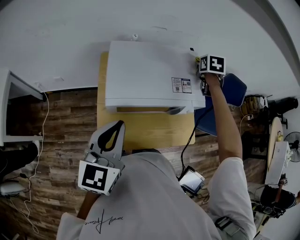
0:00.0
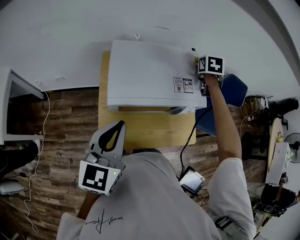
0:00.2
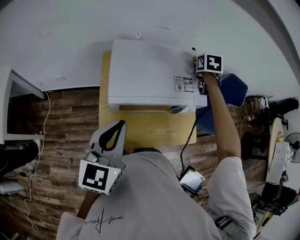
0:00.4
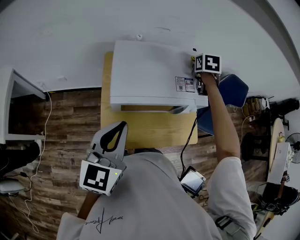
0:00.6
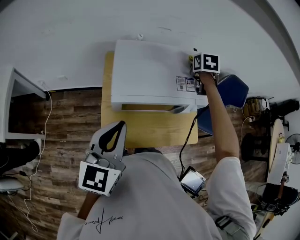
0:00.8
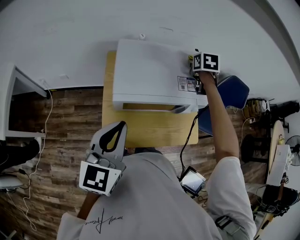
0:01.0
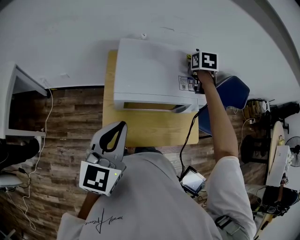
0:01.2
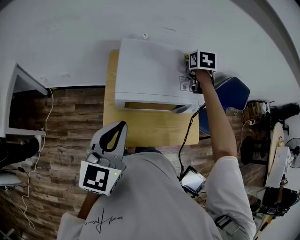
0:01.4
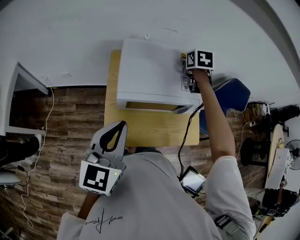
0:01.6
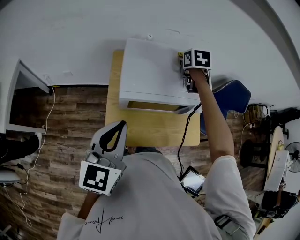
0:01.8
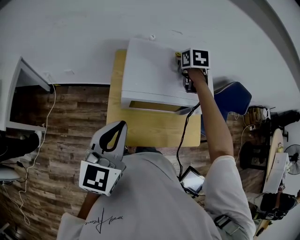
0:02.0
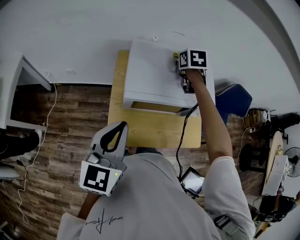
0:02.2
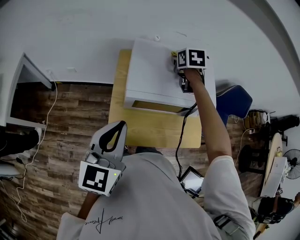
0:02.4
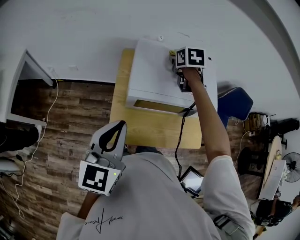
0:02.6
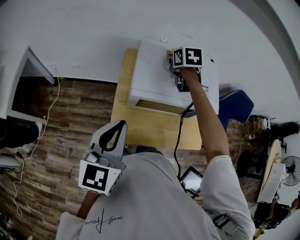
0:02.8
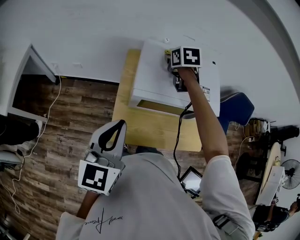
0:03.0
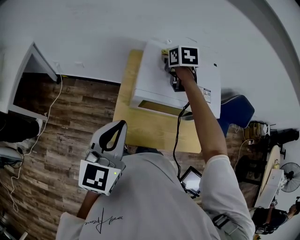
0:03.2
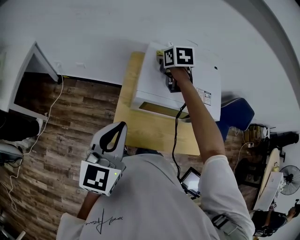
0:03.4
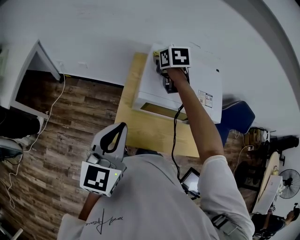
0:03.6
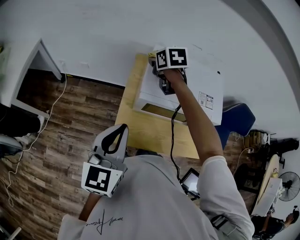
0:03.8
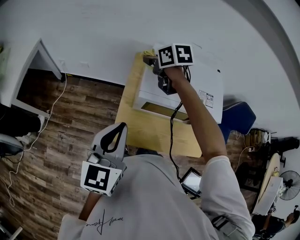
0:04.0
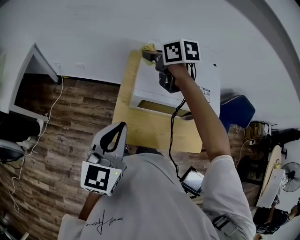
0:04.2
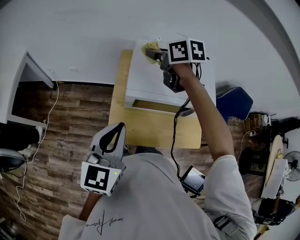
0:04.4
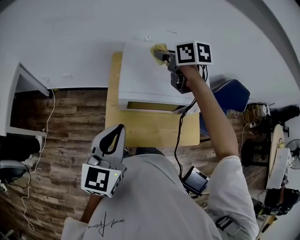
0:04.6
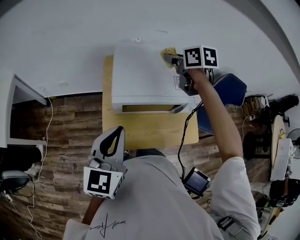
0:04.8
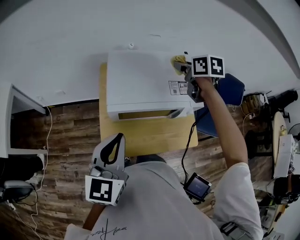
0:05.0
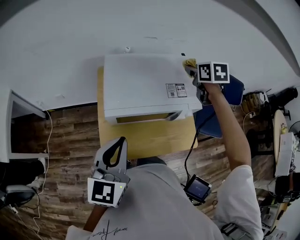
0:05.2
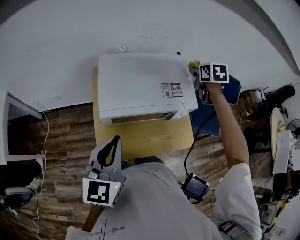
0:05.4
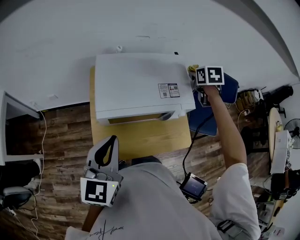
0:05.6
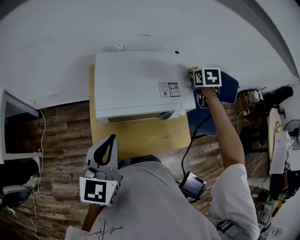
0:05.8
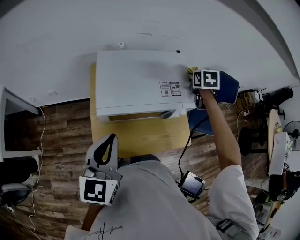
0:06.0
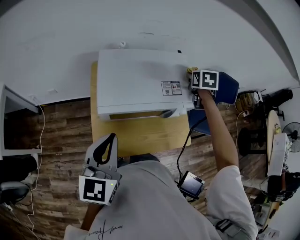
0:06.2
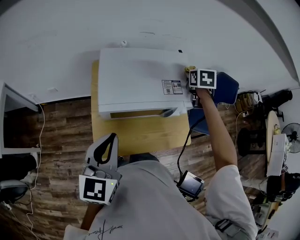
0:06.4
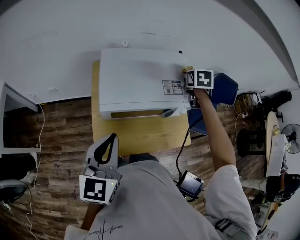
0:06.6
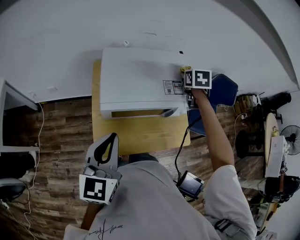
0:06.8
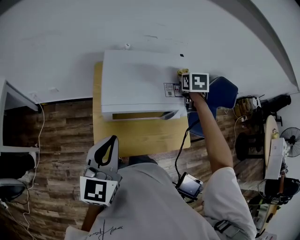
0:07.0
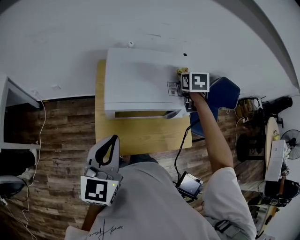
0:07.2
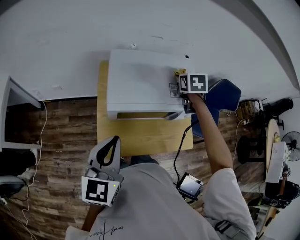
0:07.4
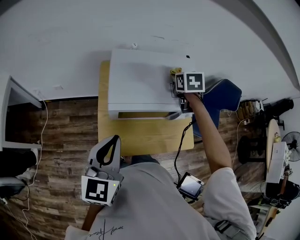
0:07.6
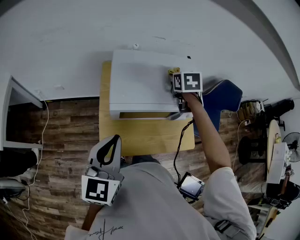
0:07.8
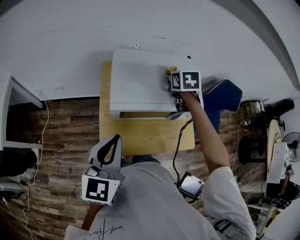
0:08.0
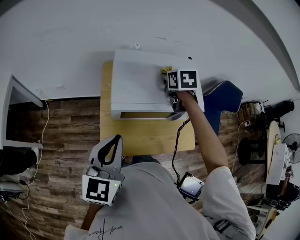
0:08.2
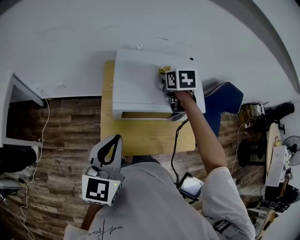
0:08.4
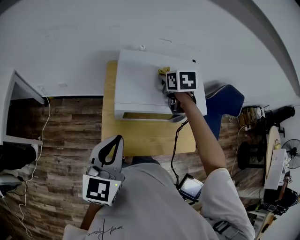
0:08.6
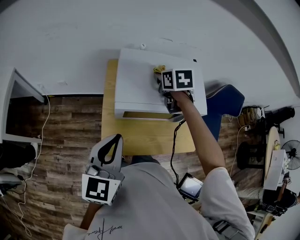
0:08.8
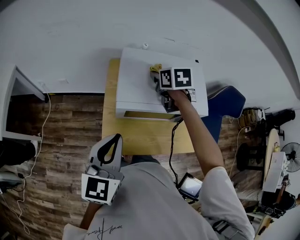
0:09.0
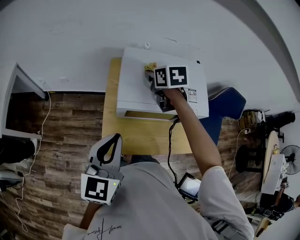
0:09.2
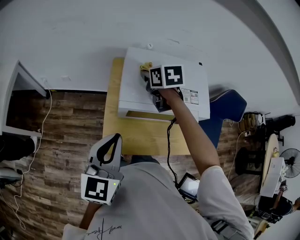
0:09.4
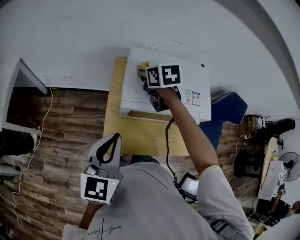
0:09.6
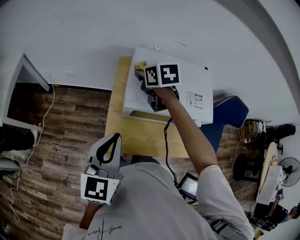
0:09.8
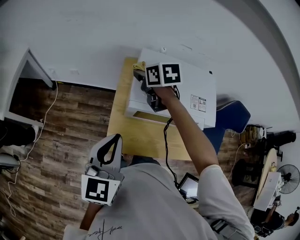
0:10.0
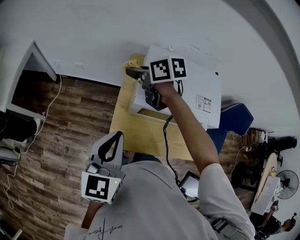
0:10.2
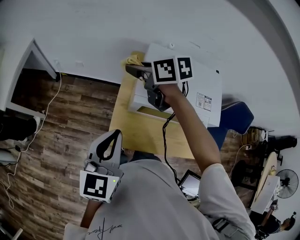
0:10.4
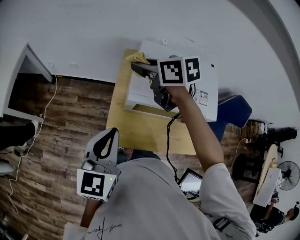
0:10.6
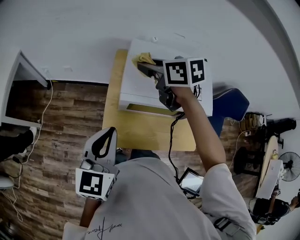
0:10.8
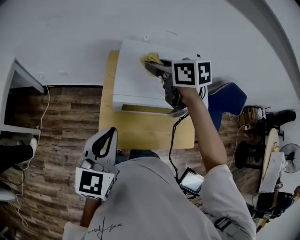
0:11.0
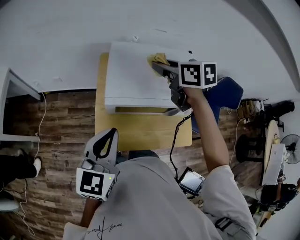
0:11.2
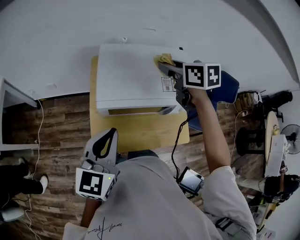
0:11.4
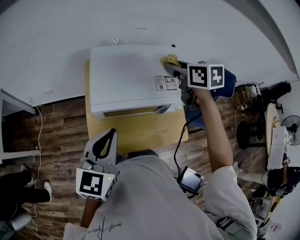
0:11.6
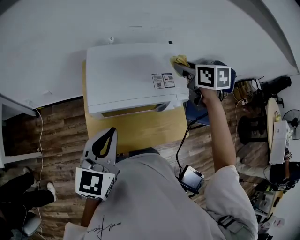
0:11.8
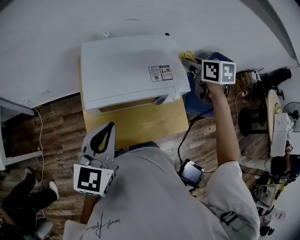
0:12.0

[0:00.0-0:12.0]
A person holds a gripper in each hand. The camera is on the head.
0:00.0 to 0:01.6: The right gripper travels to the left by some 10 cm.
0:01.6 to 0:03.0: The right gripper is displaced to the left by approximately 15 cm; the left gripper shifts by approximately 5 cm.
0:03.0 to 0:04.4: The right gripper heads to the left and upward, covering some 10 cm, and swivels roughly 30 degrees.
0:04.4 to 0:06.0: The right gripper ends up roughly 40 cm from where it was, and turns by roughly 50 degrees. Meanwhile the left gripper changes place by roughly 10 cm.
0:06.0 to 0:07.6: The right gripper goes approximately 15 cm to the left.
0:07.6 to 0:09.0: The right gripper heads to the left, covering roughly 15 cm.
0:09.0 to 0:10.4: The right gripper shifts by roughly 20 cm, and swivels about 40 degrees.
0:10.4 to 0:12.0: The left gripper changes place by roughly 15 cm, and turns by approximately 20 degrees; the right gripper changes place by about 50 cm, and changes its angle by roughly 50 degrees.

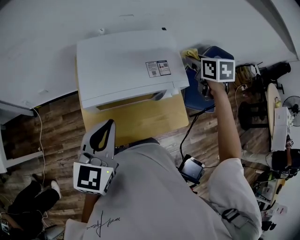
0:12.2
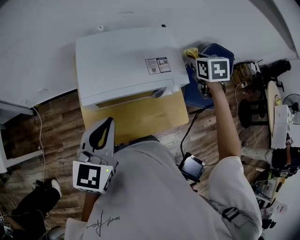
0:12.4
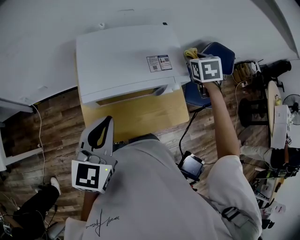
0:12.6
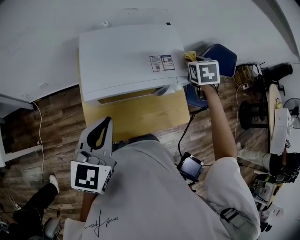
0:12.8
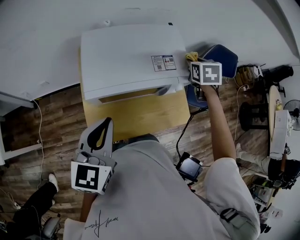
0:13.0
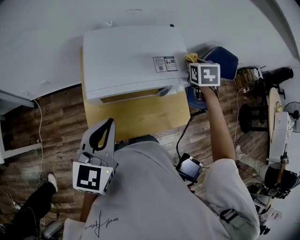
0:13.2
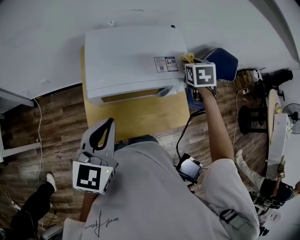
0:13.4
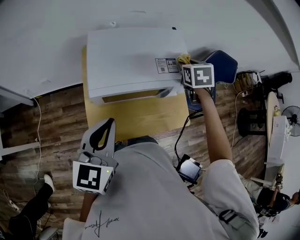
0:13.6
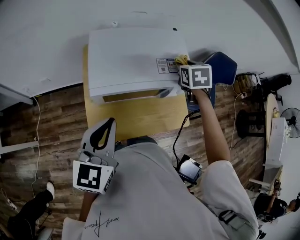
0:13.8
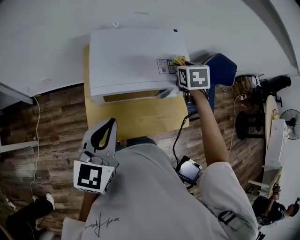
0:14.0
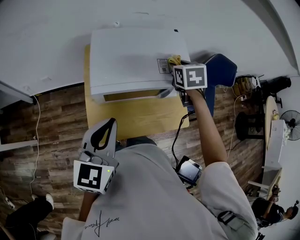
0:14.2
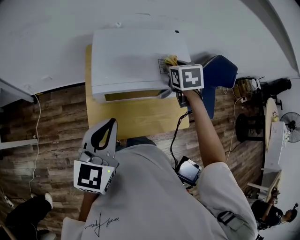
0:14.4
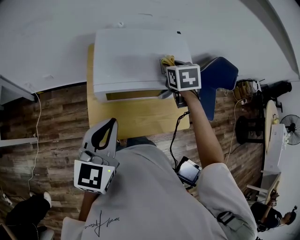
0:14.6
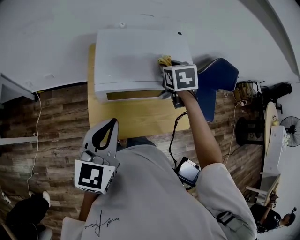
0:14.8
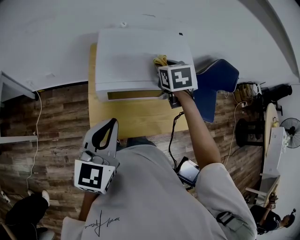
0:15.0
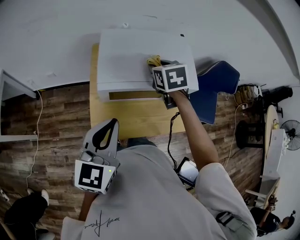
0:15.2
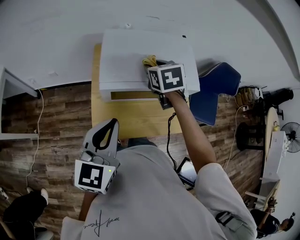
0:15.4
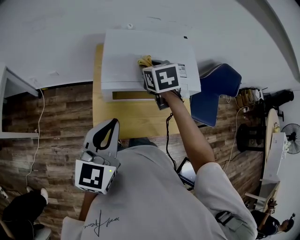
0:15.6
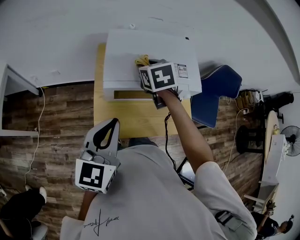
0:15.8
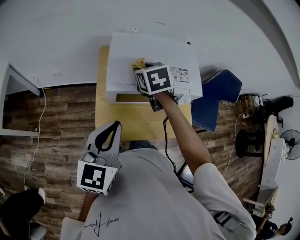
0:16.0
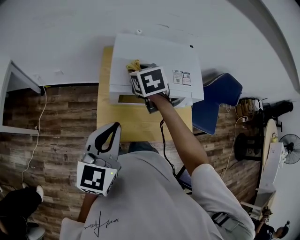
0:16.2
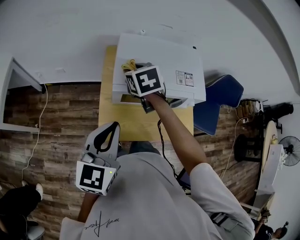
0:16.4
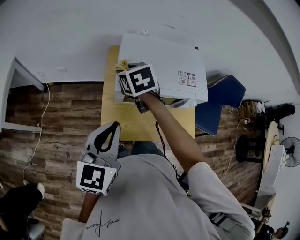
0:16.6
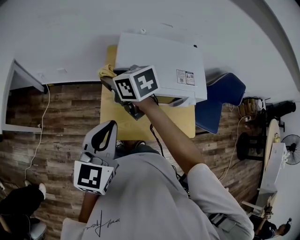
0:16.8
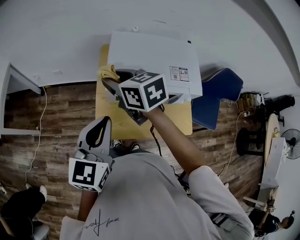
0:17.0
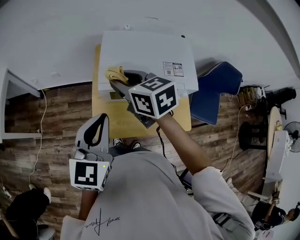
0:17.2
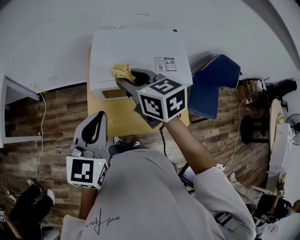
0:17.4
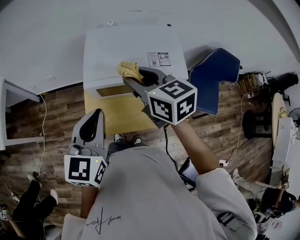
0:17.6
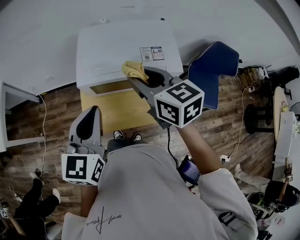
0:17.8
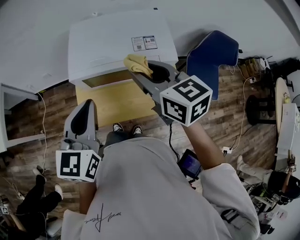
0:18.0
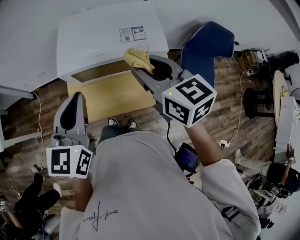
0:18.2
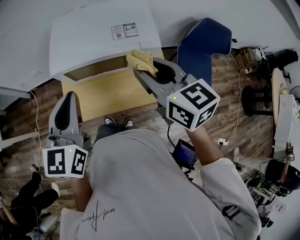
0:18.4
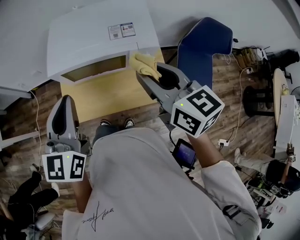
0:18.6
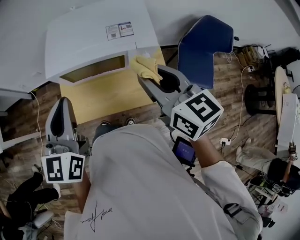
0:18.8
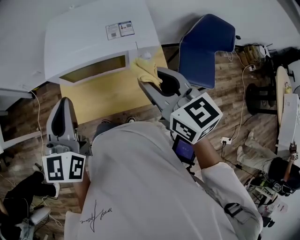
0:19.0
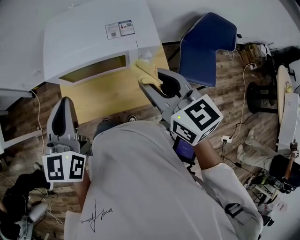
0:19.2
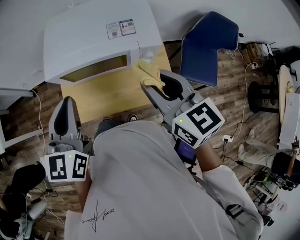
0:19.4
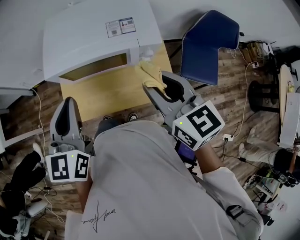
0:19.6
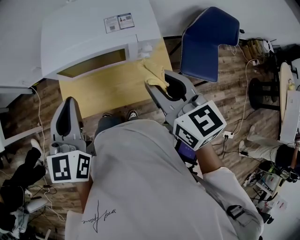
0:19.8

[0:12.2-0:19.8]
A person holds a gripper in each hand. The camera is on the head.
0:12.2 to 0:13.8: The right gripper heads to the left, covering approximately 5 cm.
0:13.8 to 0:15.2: The right gripper travels to the left by about 15 cm.
0:15.2 to 0:16.8: The left gripper ends up some 5 cm from where it was; the right gripper ends up about 25 cm from where it was, and swivels roughly 40 degrees.
0:16.8 to 0:18.2: The right gripper travels to the right and backward by roughly 35 cm, and turns by about 30 degrees. Meanwhile the left gripper is displaced to the right by approximately 10 cm.
0:18.2 to 0:19.8: The left gripper shifts by approximately 5 cm, while the right gripper heads to the right and backward, covering some 10 cm.

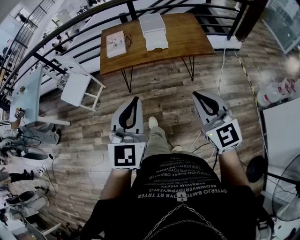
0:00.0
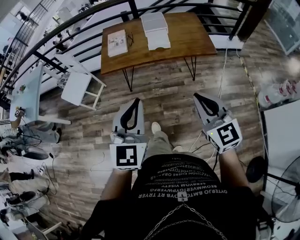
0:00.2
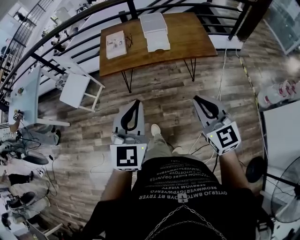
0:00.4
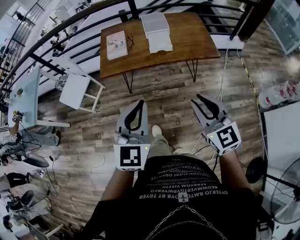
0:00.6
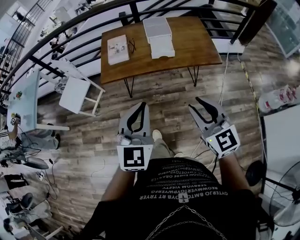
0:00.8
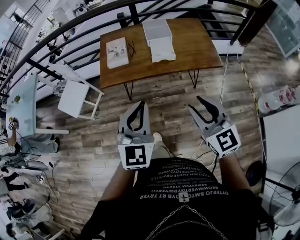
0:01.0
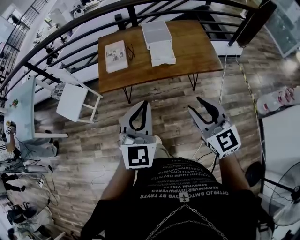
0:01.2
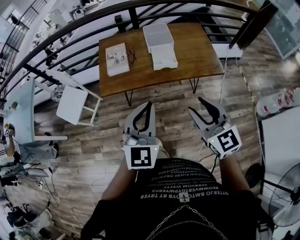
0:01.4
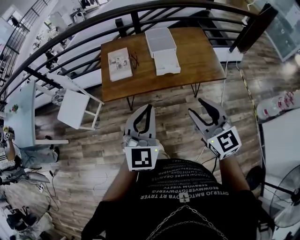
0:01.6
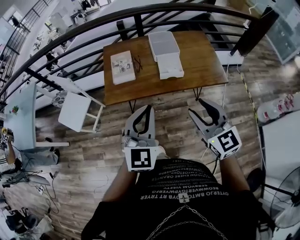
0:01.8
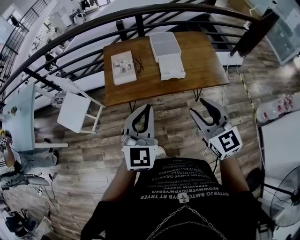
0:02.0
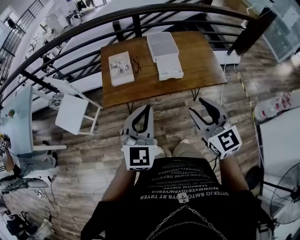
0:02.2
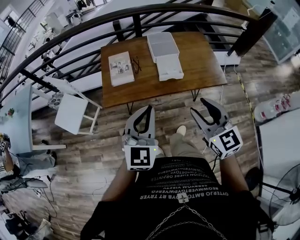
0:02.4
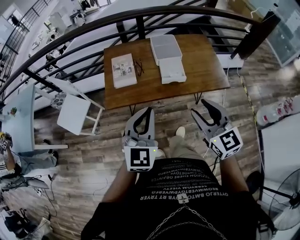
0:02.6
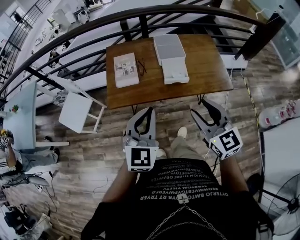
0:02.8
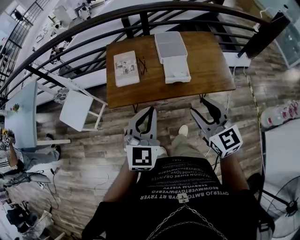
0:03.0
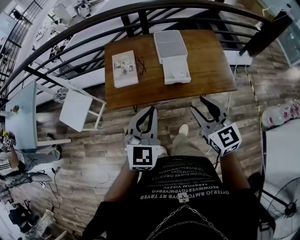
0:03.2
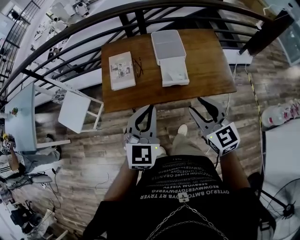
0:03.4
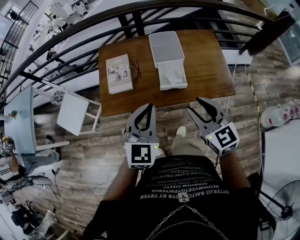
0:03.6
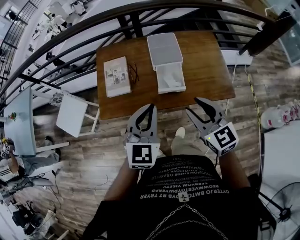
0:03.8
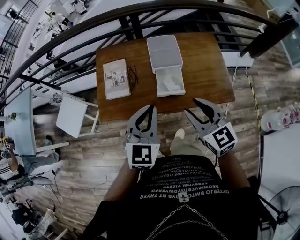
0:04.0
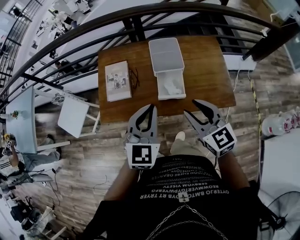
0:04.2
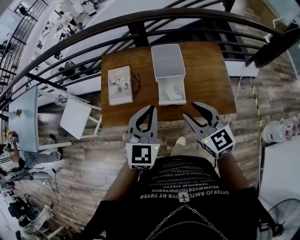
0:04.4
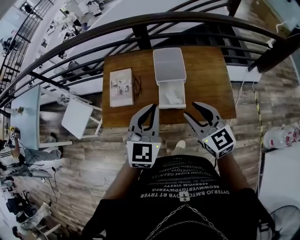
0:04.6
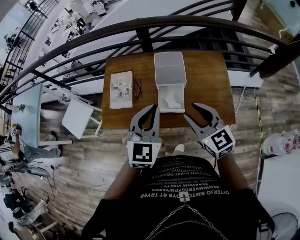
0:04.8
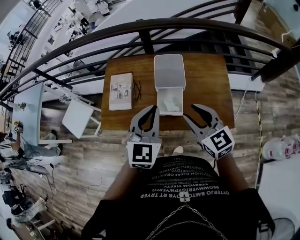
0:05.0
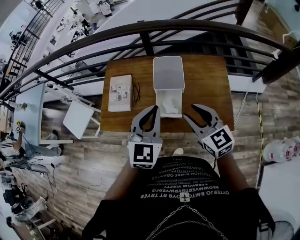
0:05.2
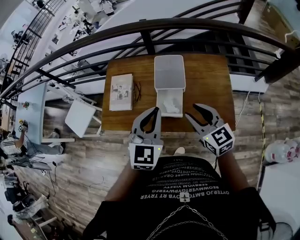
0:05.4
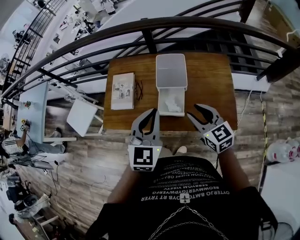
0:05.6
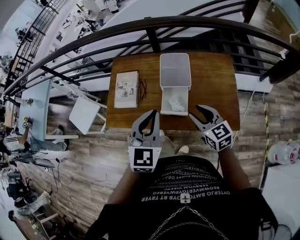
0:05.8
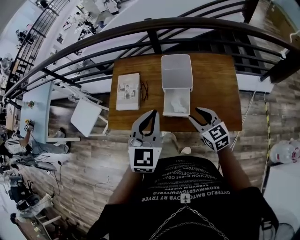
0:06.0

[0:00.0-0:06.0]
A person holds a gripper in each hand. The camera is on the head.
0:00.0 to 0:01.6: The two grippers go about 25 cm forward. The right gripper opens up.
0:01.6 to 0:03.0: Both grippers travel together forward, about 10 cm.
0:03.0 to 0:04.4: The two grippers go some 20 cm forward and to the right.
0:04.4 to 0:06.0: The right gripper shifts approximately 15 cm downward, to the right and forward.
